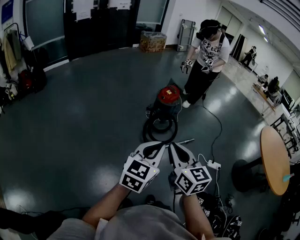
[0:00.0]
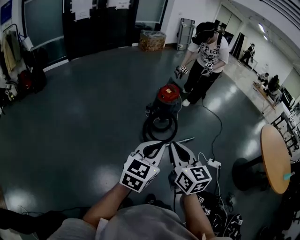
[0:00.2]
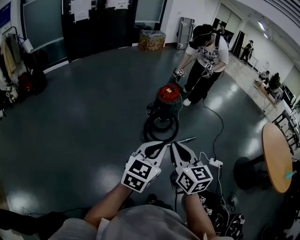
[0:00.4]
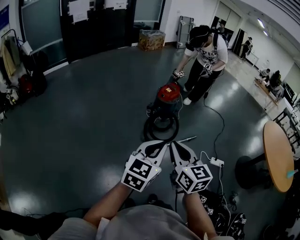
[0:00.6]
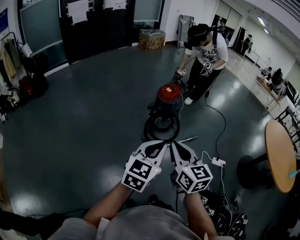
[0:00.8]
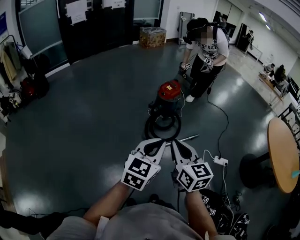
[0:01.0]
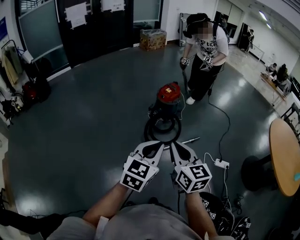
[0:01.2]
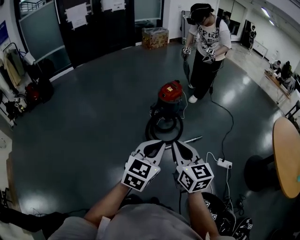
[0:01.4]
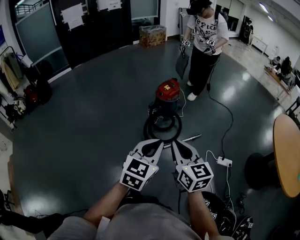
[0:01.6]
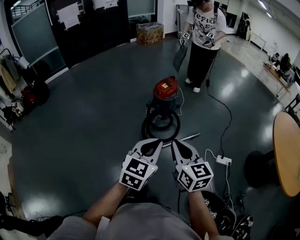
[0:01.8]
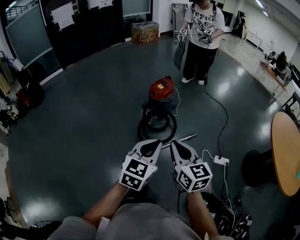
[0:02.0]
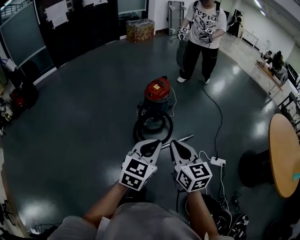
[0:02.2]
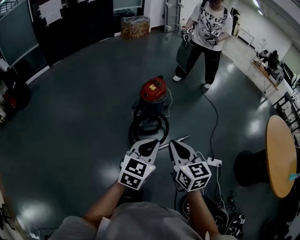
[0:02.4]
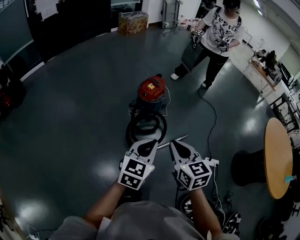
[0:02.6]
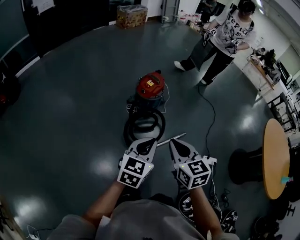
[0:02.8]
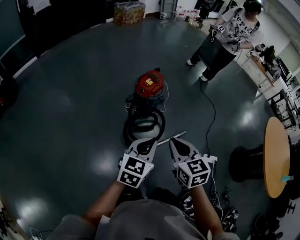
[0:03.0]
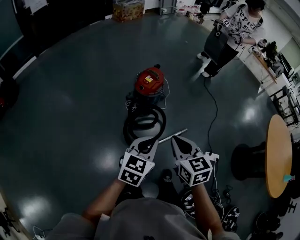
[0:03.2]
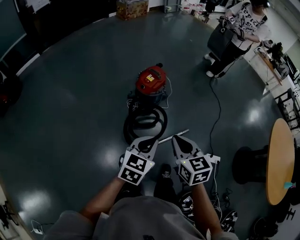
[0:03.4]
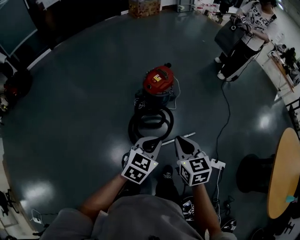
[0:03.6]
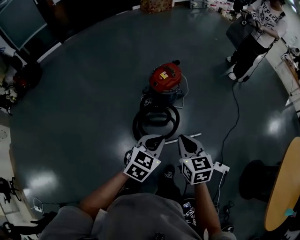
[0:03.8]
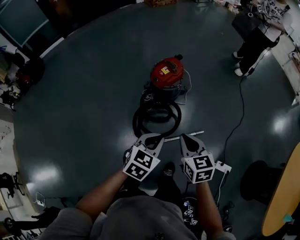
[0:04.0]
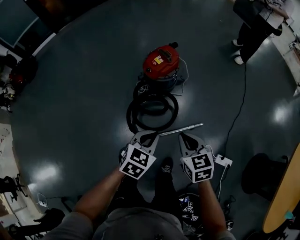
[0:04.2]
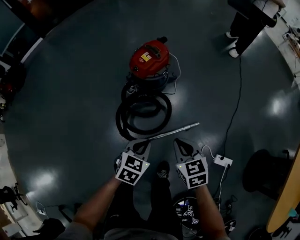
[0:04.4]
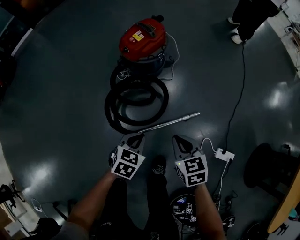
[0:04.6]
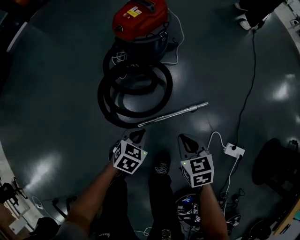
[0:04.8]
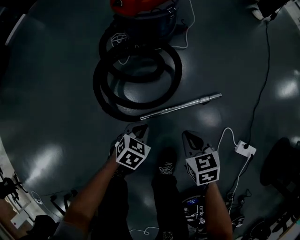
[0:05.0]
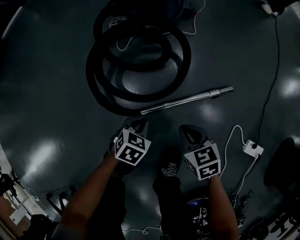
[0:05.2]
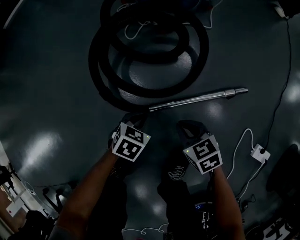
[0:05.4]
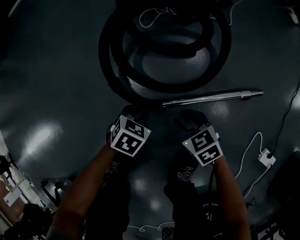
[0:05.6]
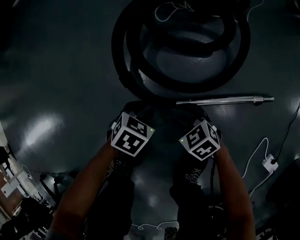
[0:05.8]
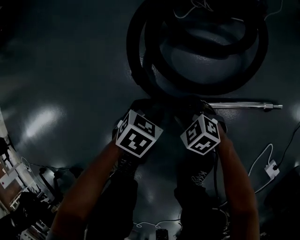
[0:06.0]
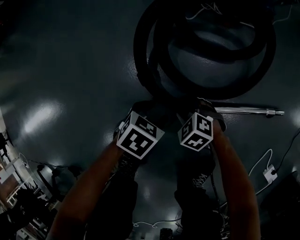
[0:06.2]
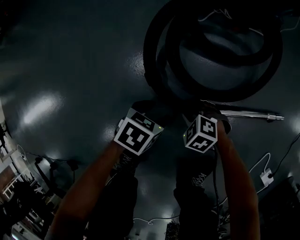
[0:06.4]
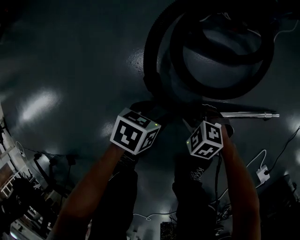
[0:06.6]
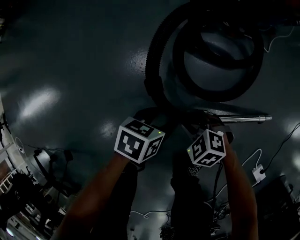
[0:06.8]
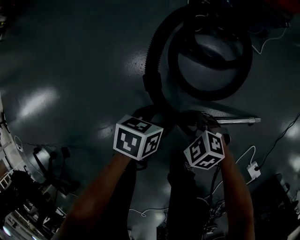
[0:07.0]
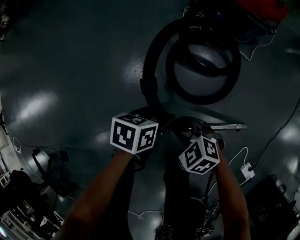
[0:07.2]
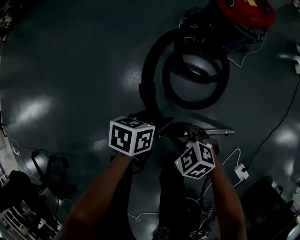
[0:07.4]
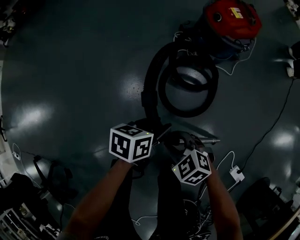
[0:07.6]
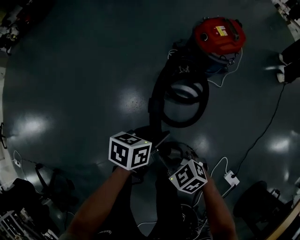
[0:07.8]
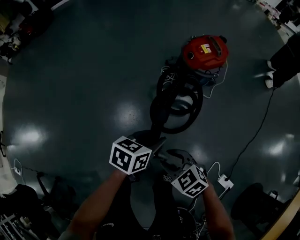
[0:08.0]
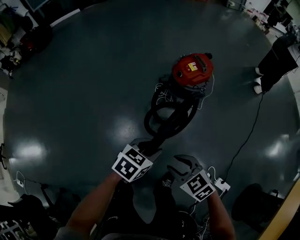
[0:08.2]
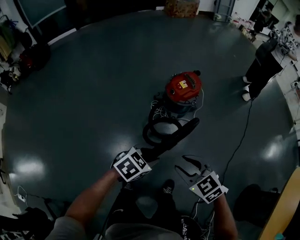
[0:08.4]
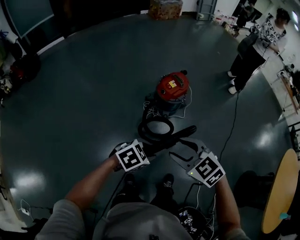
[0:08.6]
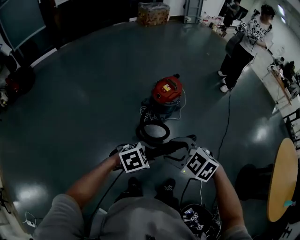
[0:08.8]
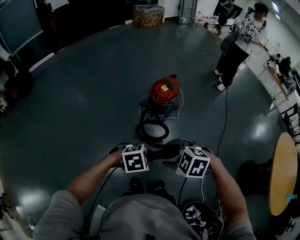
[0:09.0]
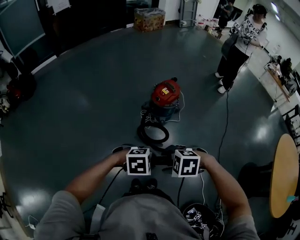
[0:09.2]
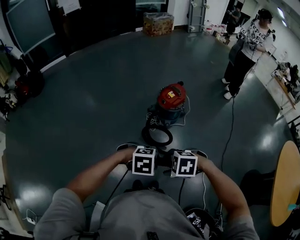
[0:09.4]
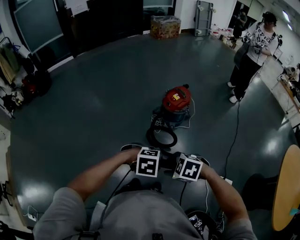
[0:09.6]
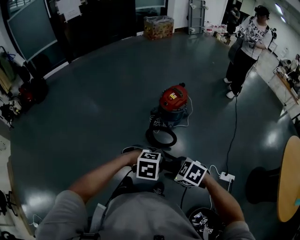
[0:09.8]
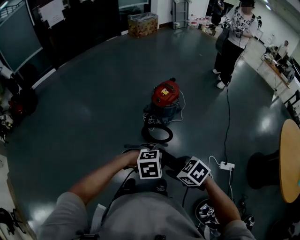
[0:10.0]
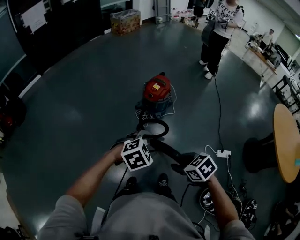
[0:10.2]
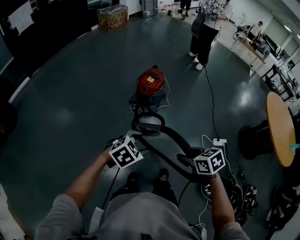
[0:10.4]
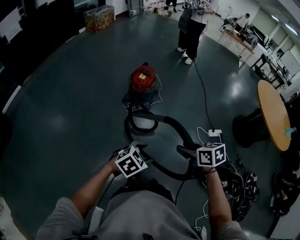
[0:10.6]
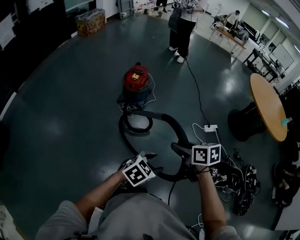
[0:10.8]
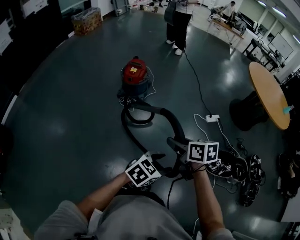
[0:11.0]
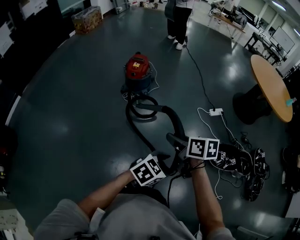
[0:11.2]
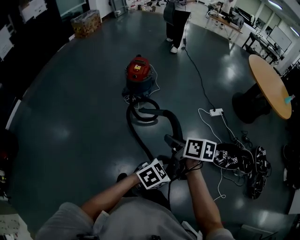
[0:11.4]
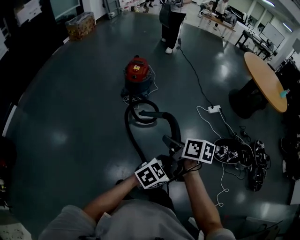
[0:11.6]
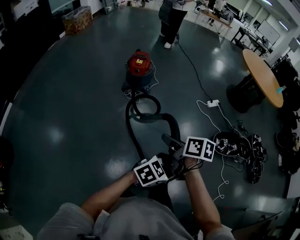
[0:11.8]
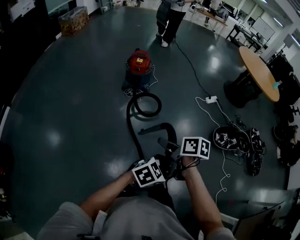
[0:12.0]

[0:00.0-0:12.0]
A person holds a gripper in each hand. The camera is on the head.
0:00.0 to 0:01.6: The two grippers go about 20 cm to the right and forward.
0:01.6 to 0:03.0: Both grippers travel together forward, some 25 cm. The right gripper turns by some 20 degrees.
0:03.0 to 0:04.4: Both grippers move downward, to the right and forward, approximately 35 cm. The left gripper changes its angle by about 30 degrees.
0:04.4 to 0:06.0: The grippers both shift downward by approximately 60 cm. The left gripper swivels some 20 degrees. The right gripper rotates some 60 degrees, and opens.
0:06.0 to 0:07.6: The two grippers go roughly 35 cm upward. The left gripper changes its angle by about 40 degrees.
0:07.6 to 0:09.0: The grippers both shift upward by roughly 50 cm. The left gripper rotates around the line of its fingers by approximately 80 degrees, clockwise from behind.
0:09.0 to 0:10.4: The right gripper shifts by approximately 5 cm, and rotates around the line of its fingers by approximately 70 degrees, clockwise from behind; the left gripper ends up approximately 10 cm from where it was.
0:10.4 to 0:12.0: The right gripper ends up approximately 35 cm from where it was, and rolls clockwise, seen from behind, by roughly 60 degrees, while the left gripper shifts by some 35 cm, and rotates some 40 degrees.

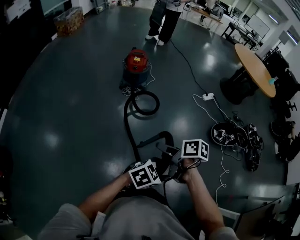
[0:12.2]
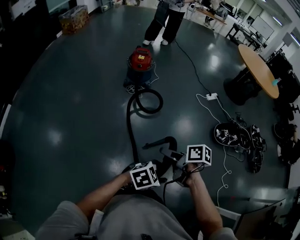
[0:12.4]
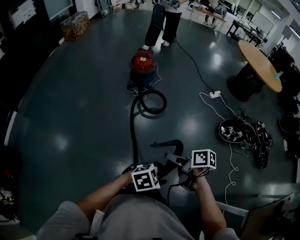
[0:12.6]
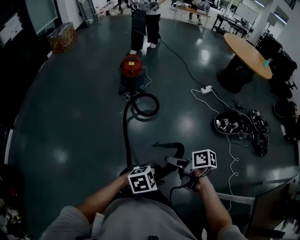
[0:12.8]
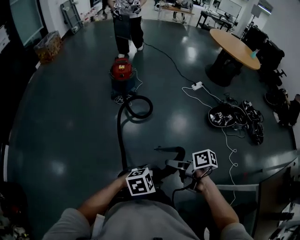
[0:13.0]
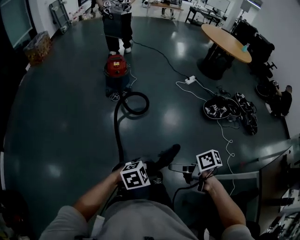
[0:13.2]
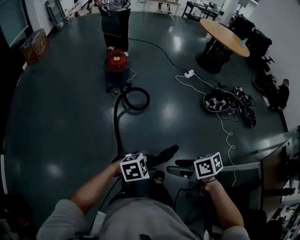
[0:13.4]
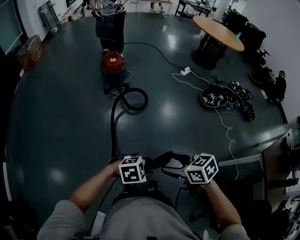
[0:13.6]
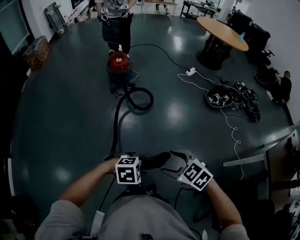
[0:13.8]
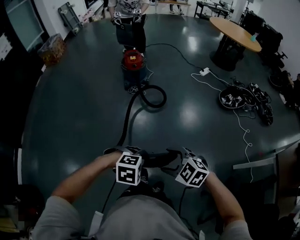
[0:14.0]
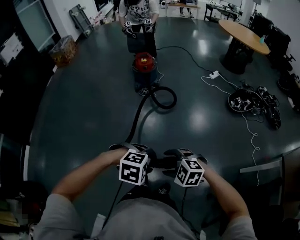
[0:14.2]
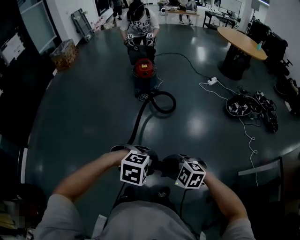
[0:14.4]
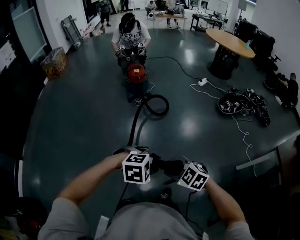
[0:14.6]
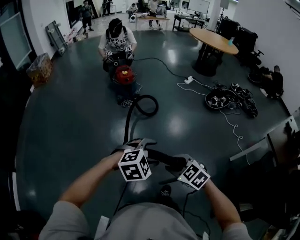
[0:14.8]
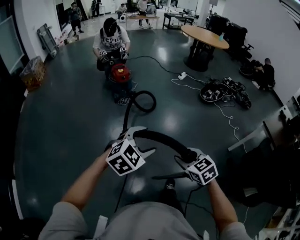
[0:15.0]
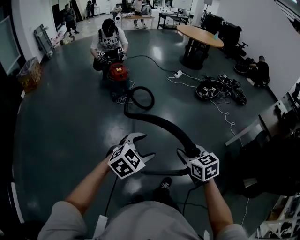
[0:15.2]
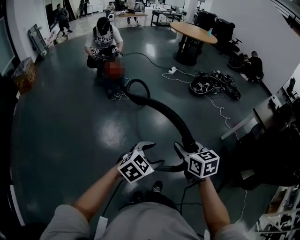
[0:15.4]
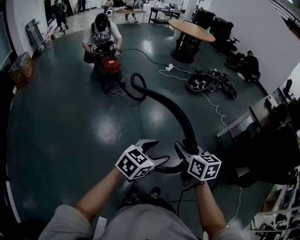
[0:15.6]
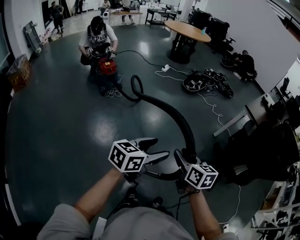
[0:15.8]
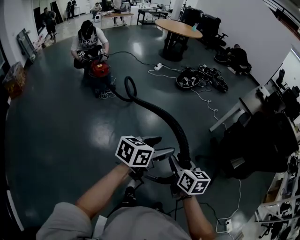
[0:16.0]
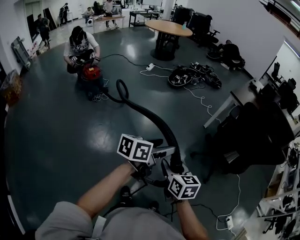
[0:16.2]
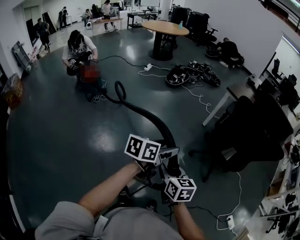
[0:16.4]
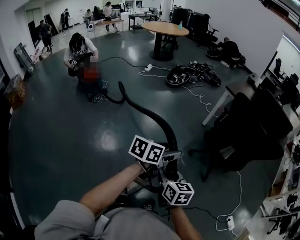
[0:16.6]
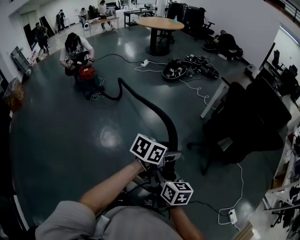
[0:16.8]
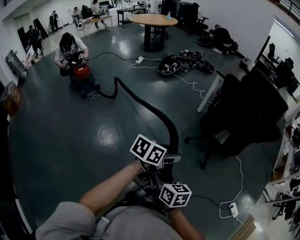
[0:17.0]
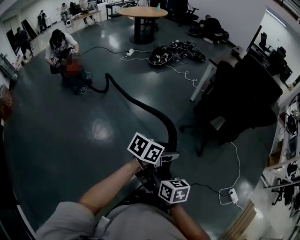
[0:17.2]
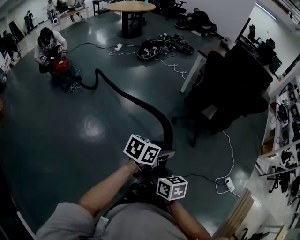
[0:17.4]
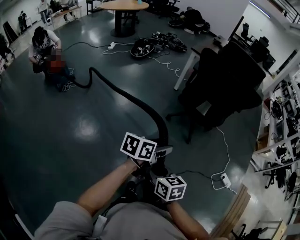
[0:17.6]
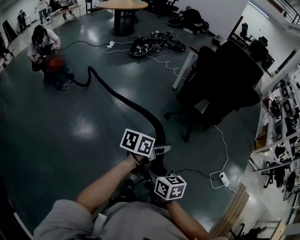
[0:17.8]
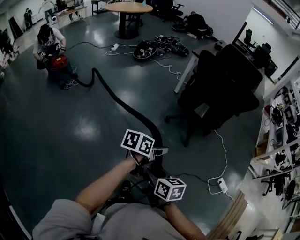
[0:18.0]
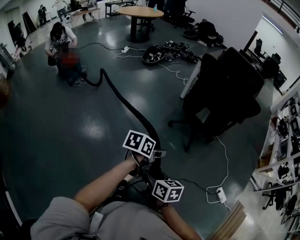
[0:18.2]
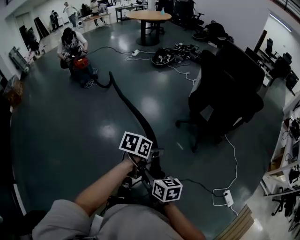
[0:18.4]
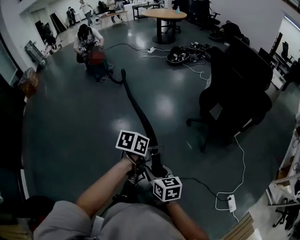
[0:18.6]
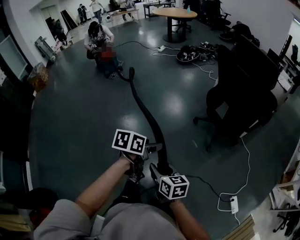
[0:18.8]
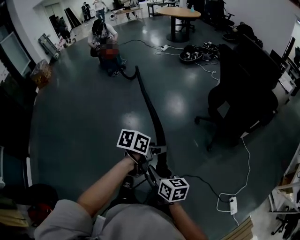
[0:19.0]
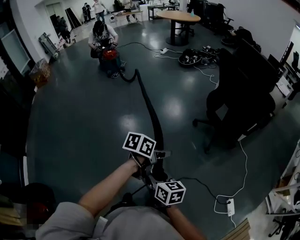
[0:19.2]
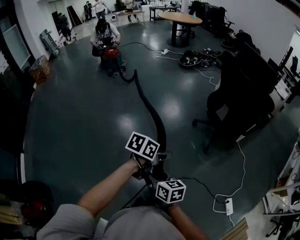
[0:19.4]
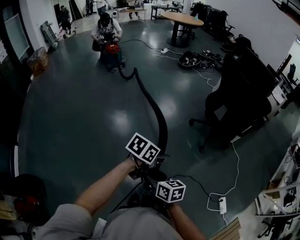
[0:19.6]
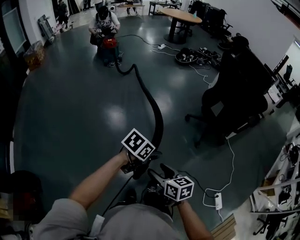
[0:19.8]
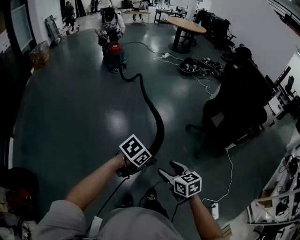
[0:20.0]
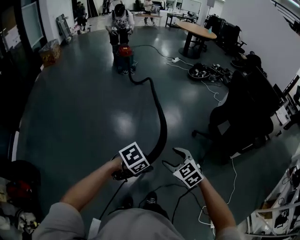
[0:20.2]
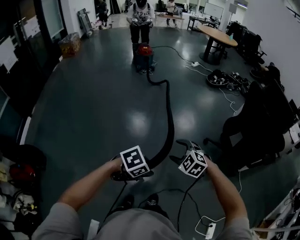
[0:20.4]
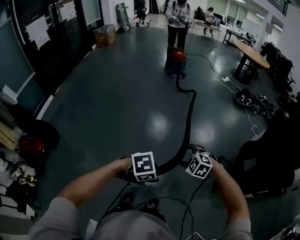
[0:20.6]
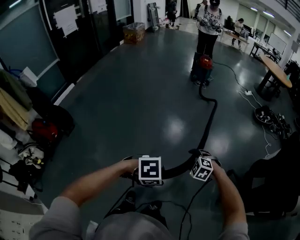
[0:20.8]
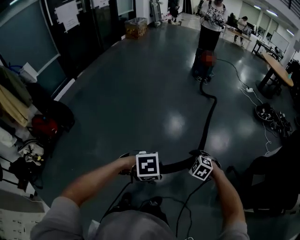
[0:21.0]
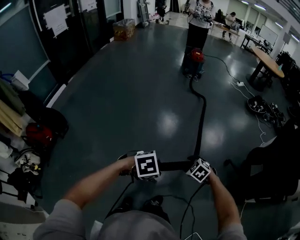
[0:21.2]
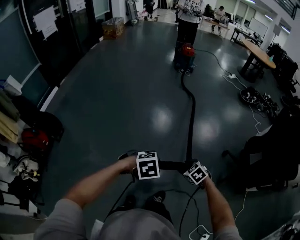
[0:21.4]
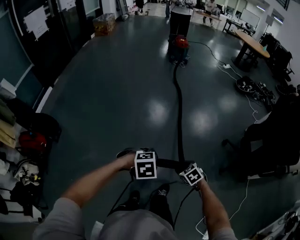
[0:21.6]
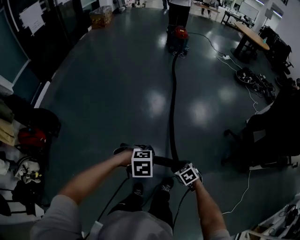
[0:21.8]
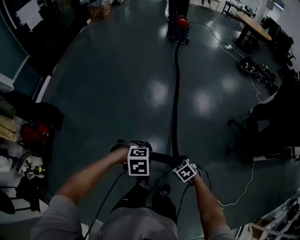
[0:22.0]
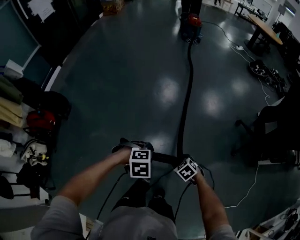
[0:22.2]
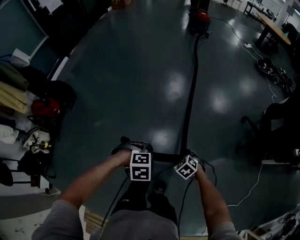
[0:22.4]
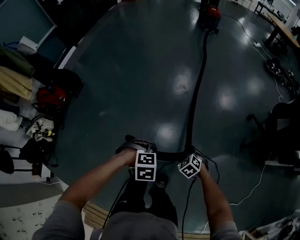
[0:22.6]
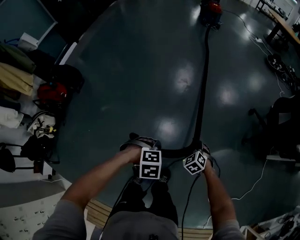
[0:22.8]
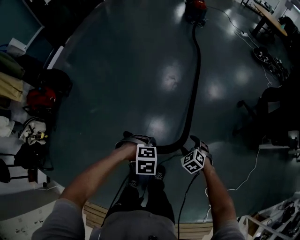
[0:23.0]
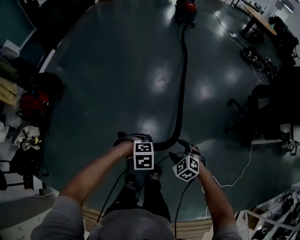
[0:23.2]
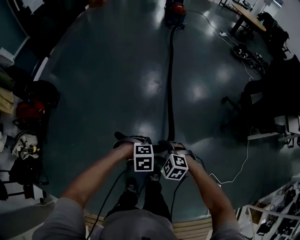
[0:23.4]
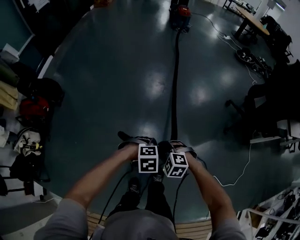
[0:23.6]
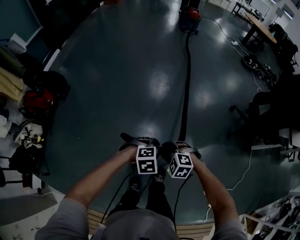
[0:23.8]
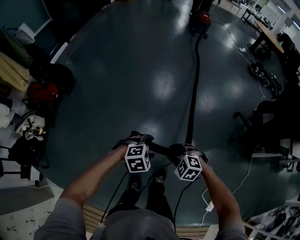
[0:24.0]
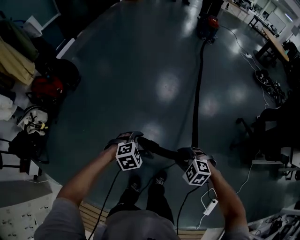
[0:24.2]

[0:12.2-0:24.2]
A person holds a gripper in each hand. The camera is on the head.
0:12.2 to 0:13.8: The right gripper moves approximately 30 cm, and rotates around the line of its fingers by about 60 degrees, counterclockwise from behind. The left gripper shifts by some 30 cm, and rotates about 50 degrees.
0:13.8 to 0:15.2: The left gripper changes place by some 25 cm, turns by some 30 degrees, and opens up; the right gripper moves some 20 cm, rotates about 40 degrees, and closes its fingers.
0:15.2 to 0:16.6: The right gripper ends up about 35 cm from where it was, and changes its angle by approximately 40 degrees. Meanwhile the left gripper changes place by about 40 cm, and twists approximately 40 degrees counterclockwise, seen from behind.
0:16.6 to 0:18.2: The right gripper heads backward and to the right, covering about 25 cm. The left gripper heads to the right, backward and downward, covering approximately 25 cm.
0:18.2 to 0:19.8: The two grippers go roughly 20 cm backward. The right gripper rotates roughly 30 degrees.
0:19.8 to 0:21.2: The right gripper changes place by about 20 cm, and twists roughly 70 degrees counterclockwise, seen from behind. Meanwhile the left gripper shifts by approximately 10 cm, and turns by some 20 degrees.
0:21.2 to 0:22.6: The left gripper moves roughly 35 cm, and swivels about 20 degrees. Meanwhile the right gripper moves some 35 cm.
0:22.6 to 0:24.2: The right gripper moves roughly 25 cm, and turns by approximately 30 degrees, while the left gripper shifts by approximately 15 cm, rotates about 30 degrees, and opens up.
